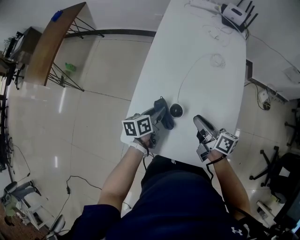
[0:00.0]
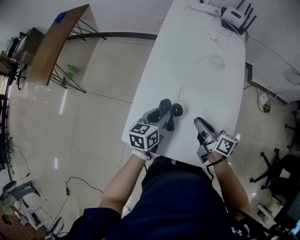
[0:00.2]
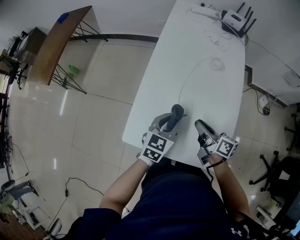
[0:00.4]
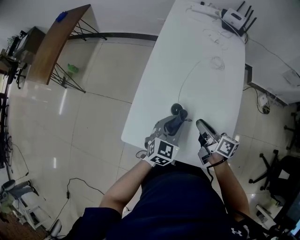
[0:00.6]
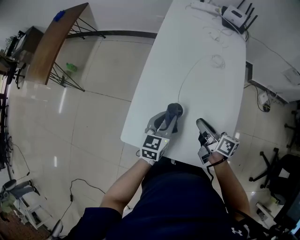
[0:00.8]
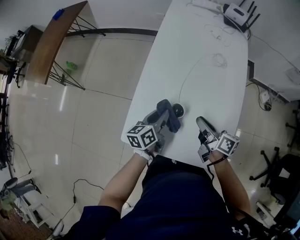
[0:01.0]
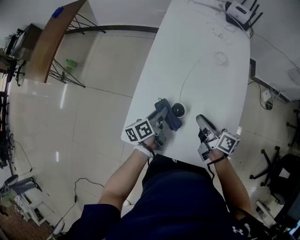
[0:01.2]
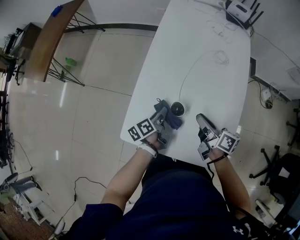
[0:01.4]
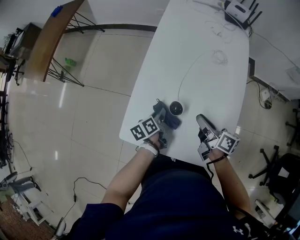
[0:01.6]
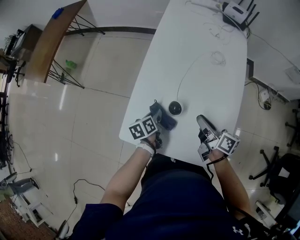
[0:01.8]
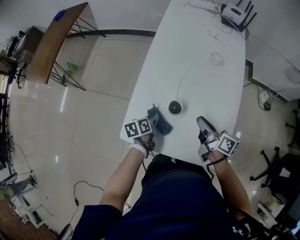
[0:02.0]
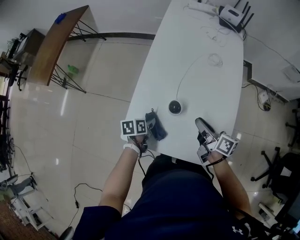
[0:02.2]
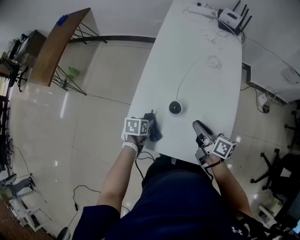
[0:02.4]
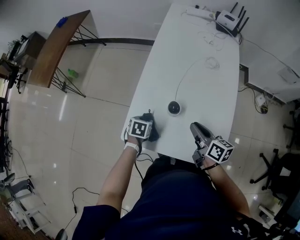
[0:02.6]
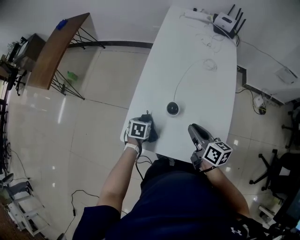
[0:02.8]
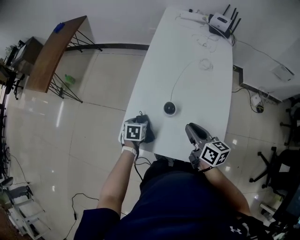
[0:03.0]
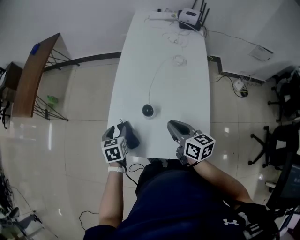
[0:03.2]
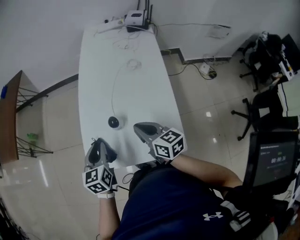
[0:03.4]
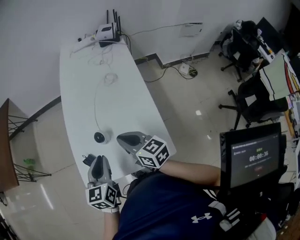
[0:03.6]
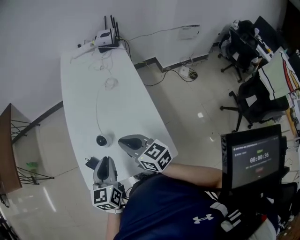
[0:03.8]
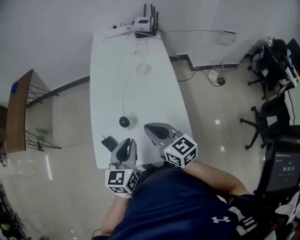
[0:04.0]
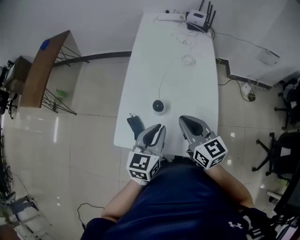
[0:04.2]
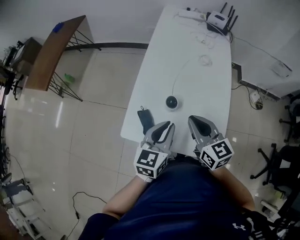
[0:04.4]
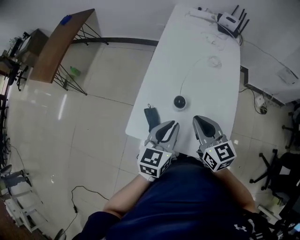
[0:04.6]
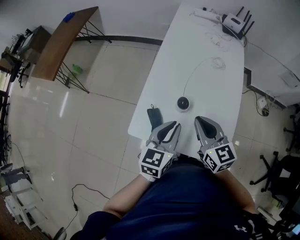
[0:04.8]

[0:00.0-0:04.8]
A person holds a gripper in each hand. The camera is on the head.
0:00.0 to 0:01.6: The left gripper is displaced downward by about 5 cm, and swivels roughly 20 degrees.
0:01.6 to 0:03.2: The right gripper goes roughly 5 cm upward, and turns by some 30 degrees. Meanwhile the left gripper moves to the left and upward, about 15 cm, rotates around the line of its fingers by about 50 degrees, clockwise from behind, and opens.
0:03.2 to 0:04.8: The left gripper moves to the right, upward and backward, approximately 20 cm, swivels some 30 degrees, and closes up. Meanwhile the right gripper moves upward, roughly 5 cm, and turns by approximately 30 degrees.

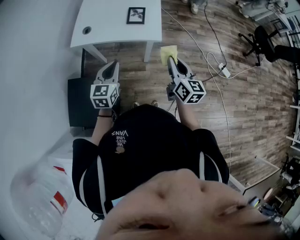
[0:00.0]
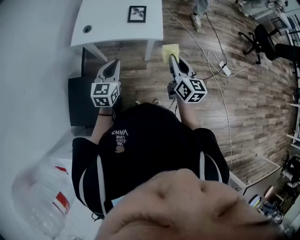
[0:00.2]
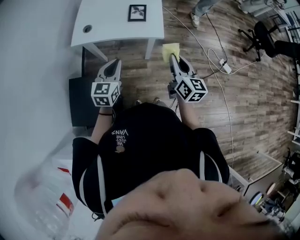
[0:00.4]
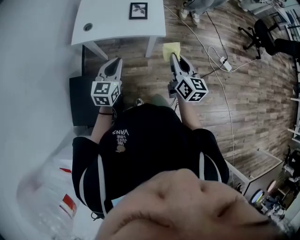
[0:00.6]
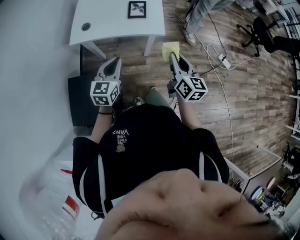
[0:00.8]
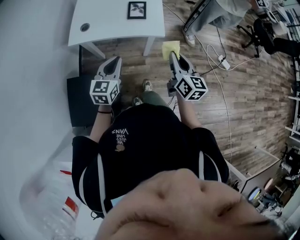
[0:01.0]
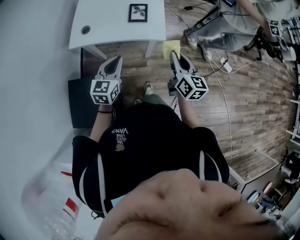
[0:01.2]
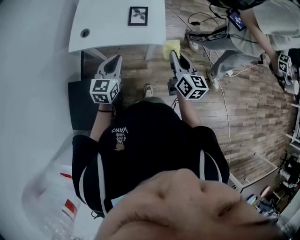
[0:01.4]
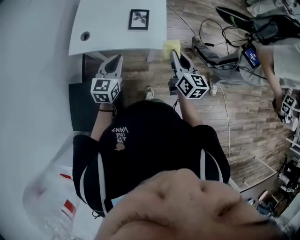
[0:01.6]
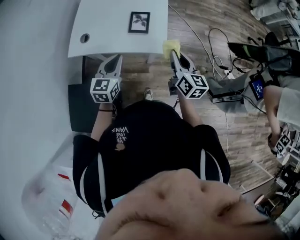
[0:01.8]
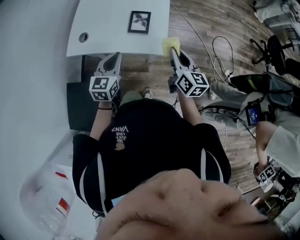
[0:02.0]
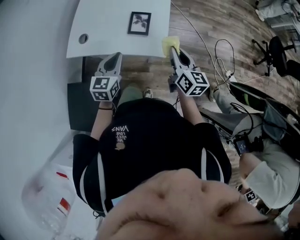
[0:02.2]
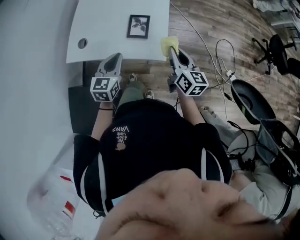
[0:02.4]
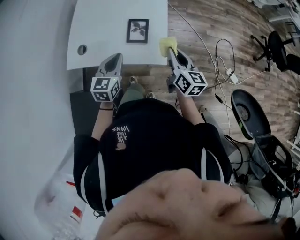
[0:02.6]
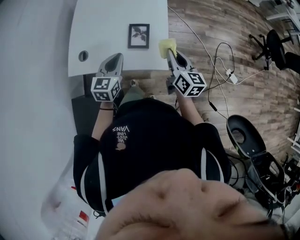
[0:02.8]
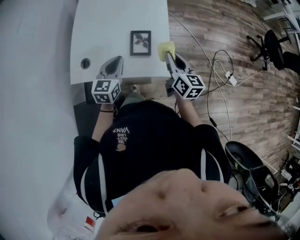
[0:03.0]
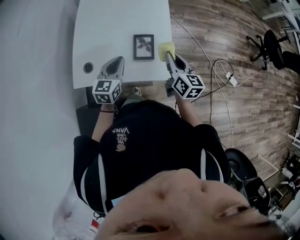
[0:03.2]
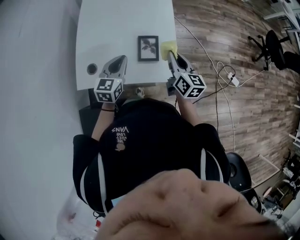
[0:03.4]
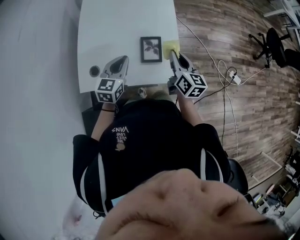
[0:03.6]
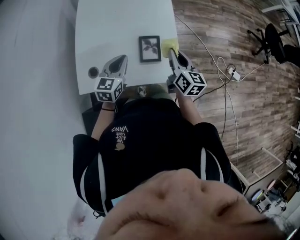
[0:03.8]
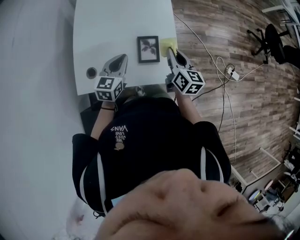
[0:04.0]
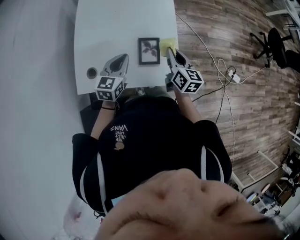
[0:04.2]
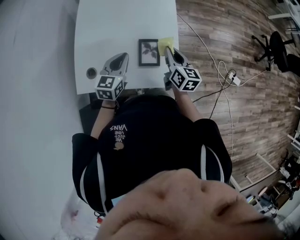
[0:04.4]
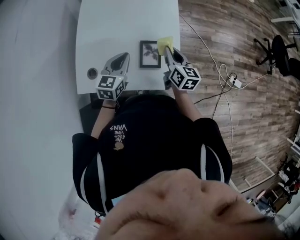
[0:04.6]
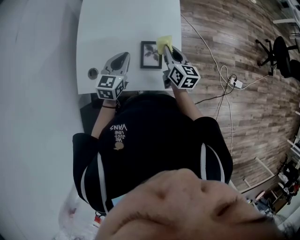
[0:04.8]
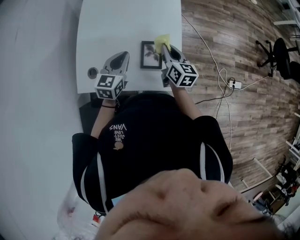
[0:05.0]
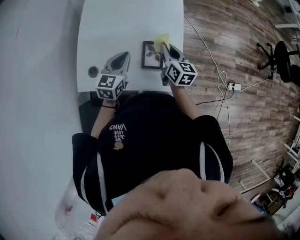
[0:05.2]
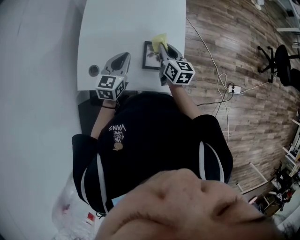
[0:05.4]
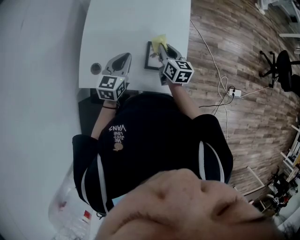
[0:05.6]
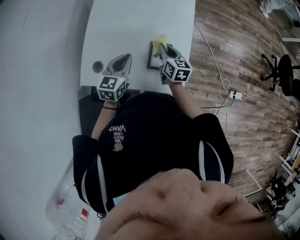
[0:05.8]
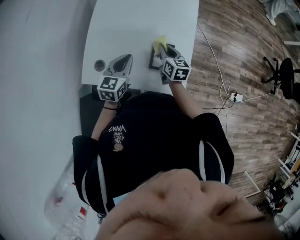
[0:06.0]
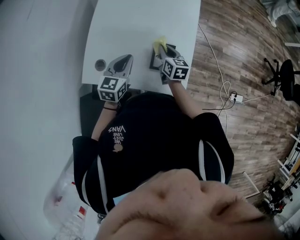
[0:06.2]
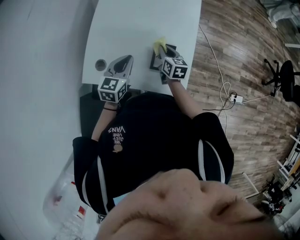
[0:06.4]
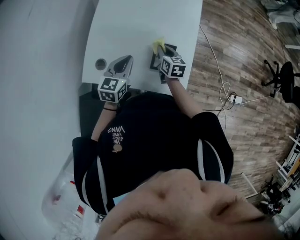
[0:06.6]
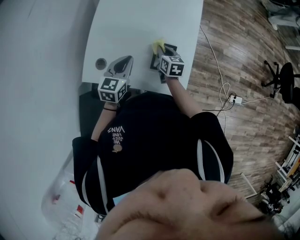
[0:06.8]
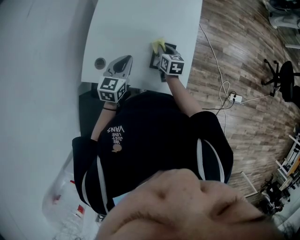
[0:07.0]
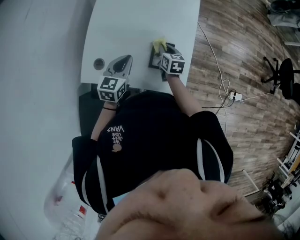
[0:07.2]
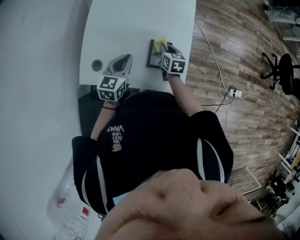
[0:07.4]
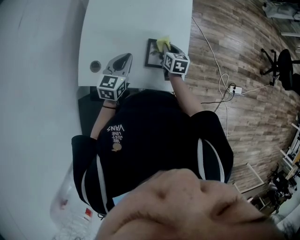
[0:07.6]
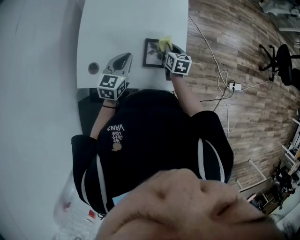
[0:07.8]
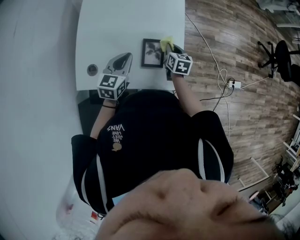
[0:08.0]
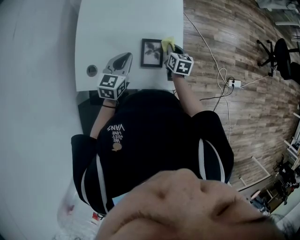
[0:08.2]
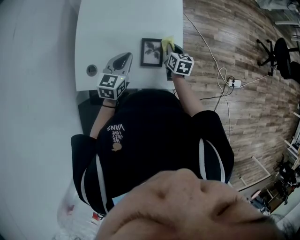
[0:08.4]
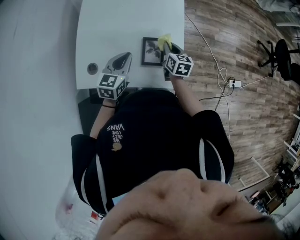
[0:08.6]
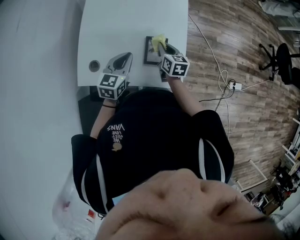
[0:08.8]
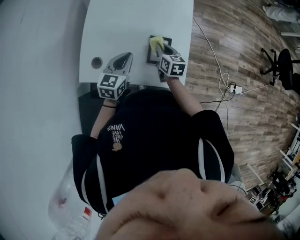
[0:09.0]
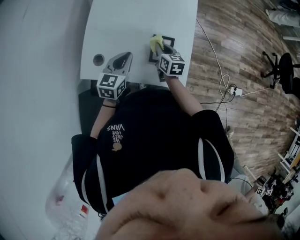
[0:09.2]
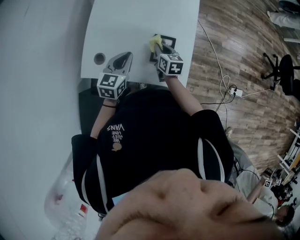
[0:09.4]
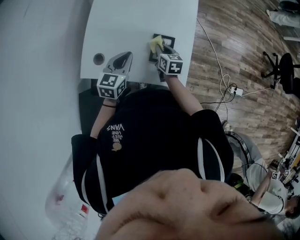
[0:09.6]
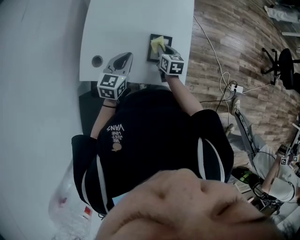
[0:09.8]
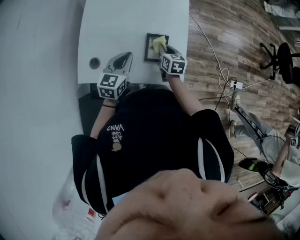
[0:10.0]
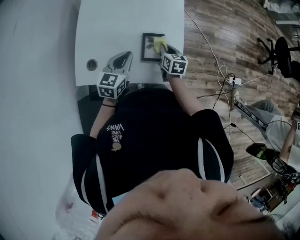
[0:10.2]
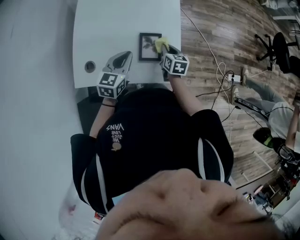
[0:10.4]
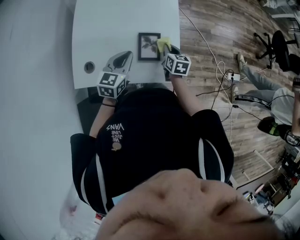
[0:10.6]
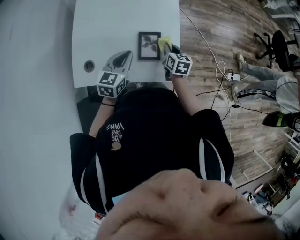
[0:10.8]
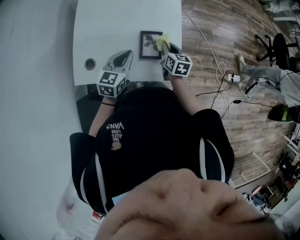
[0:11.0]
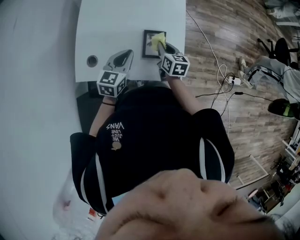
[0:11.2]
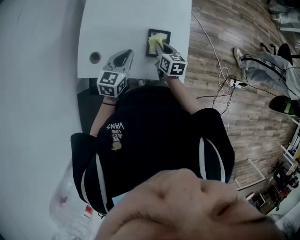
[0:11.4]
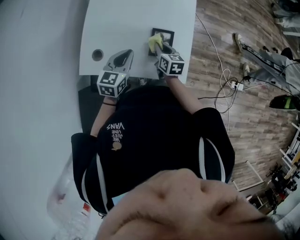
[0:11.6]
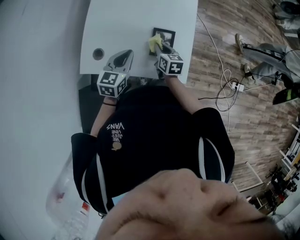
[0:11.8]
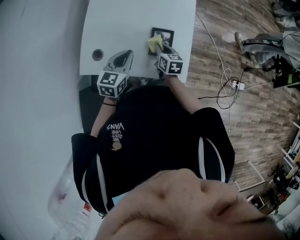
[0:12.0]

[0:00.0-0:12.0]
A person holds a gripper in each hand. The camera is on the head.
0:00.0 to 0:01.6: Both grippers travel together forward, roughly 10 cm.
0:01.6 to 0:03.0: Both grippers travel together forward, approximately 15 cm.
0:03.0 to 0:04.4: Both grippers travel together forward, some 10 cm.
0:04.4 to 0:06.0: The right gripper travels to the left, downward and forward by roughly 15 cm.
0:06.0 to 0:07.6: The right gripper moves downward, roughly 5 cm.
0:07.6 to 0:09.0: The right gripper moves approximately 5 cm.
0:09.0 to 0:10.4: The right gripper heads to the right, covering approximately 10 cm.
0:10.4 to 0:12.0: The right gripper travels to the left by about 10 cm.

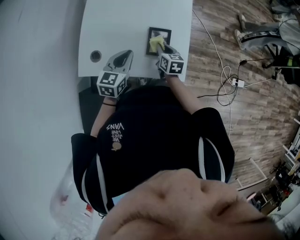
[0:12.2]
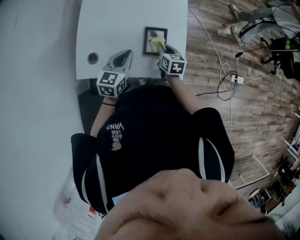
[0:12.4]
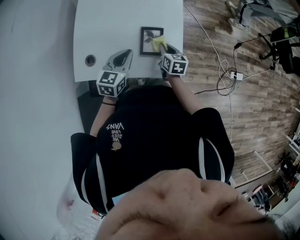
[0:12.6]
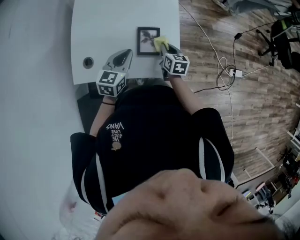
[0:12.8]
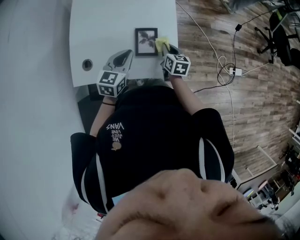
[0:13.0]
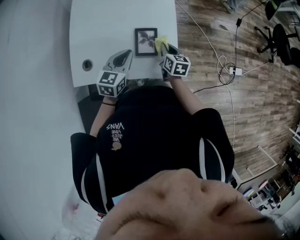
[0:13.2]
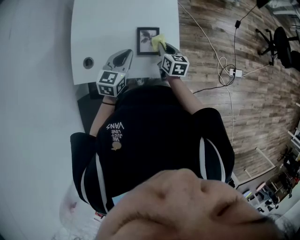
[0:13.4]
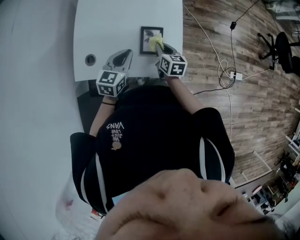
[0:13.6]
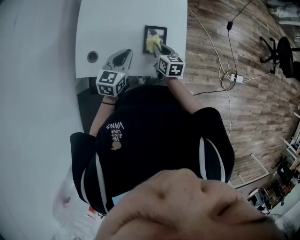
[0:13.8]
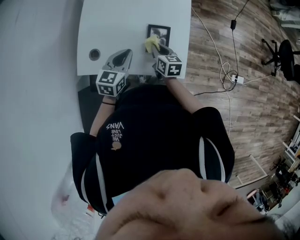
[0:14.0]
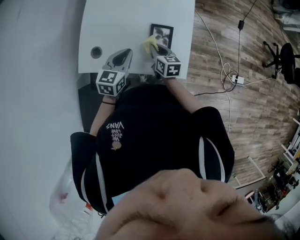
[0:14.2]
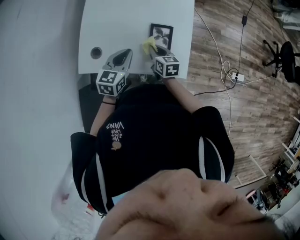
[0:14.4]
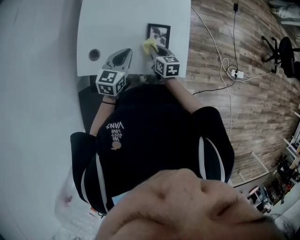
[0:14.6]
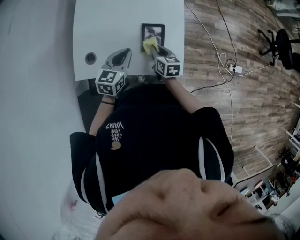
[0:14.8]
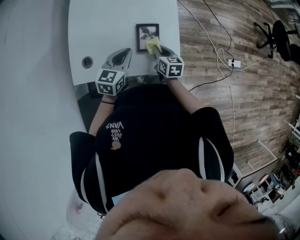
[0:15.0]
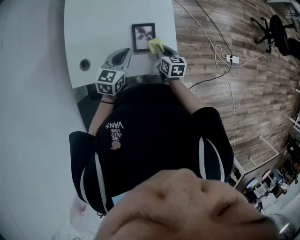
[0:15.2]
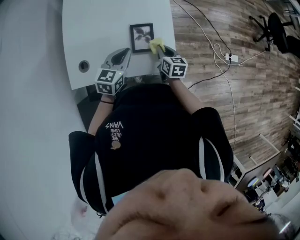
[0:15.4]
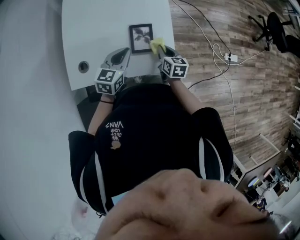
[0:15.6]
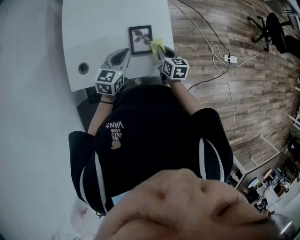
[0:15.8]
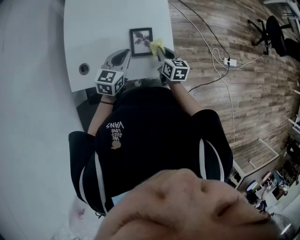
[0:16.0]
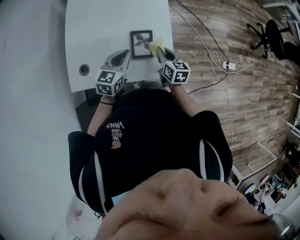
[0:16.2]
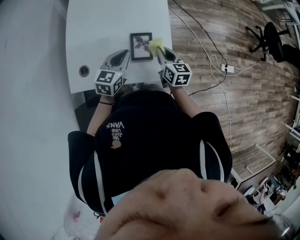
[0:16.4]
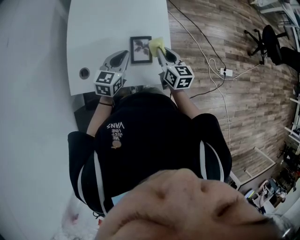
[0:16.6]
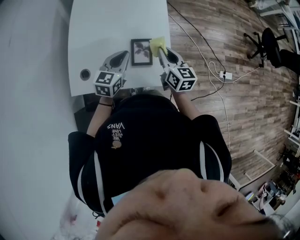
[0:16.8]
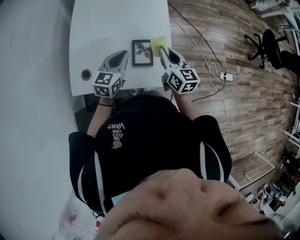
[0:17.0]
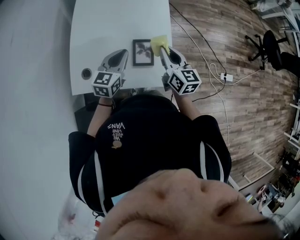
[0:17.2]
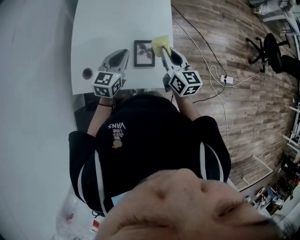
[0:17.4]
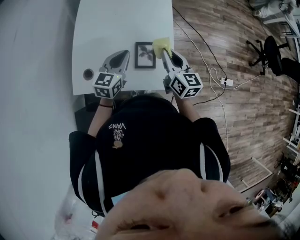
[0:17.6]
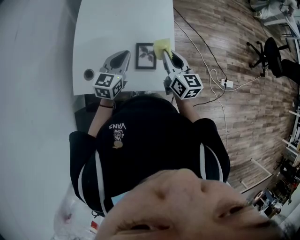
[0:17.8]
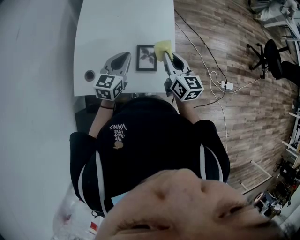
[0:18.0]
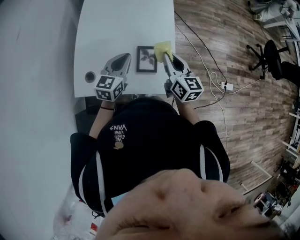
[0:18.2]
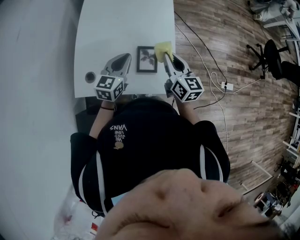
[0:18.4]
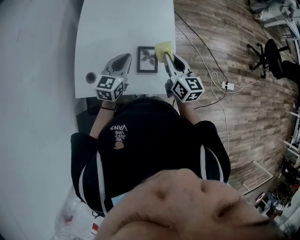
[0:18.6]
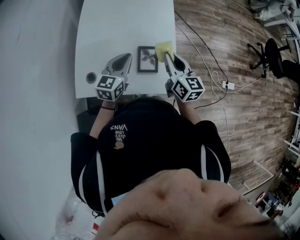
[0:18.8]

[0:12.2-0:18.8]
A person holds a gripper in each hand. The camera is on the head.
0:12.2 to 0:13.8: The right gripper goes to the right and returns, some 10 cm each way.
0:13.8 to 0:15.4: The right gripper is displaced to the right by roughly 10 cm.
0:15.4 to 0:17.2: The left gripper goes approximately 5 cm upward; the right gripper goes approximately 20 cm upward, and rotates some 30 degrees.
0:17.2 to 0:18.8: There are only small adjustments of the grippers.
